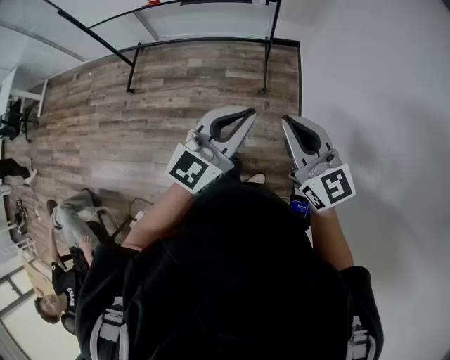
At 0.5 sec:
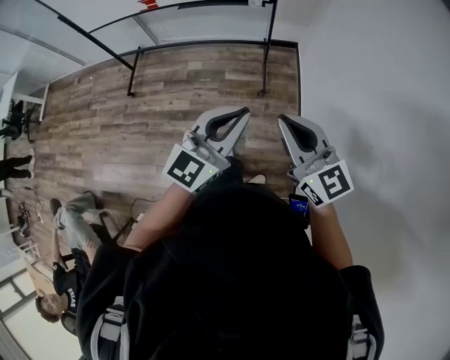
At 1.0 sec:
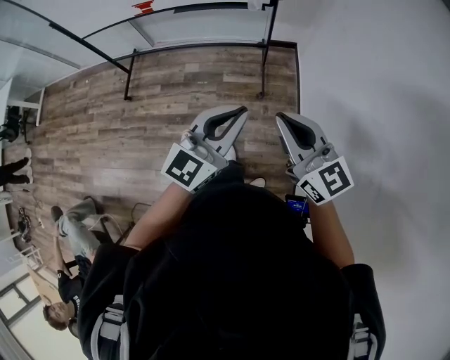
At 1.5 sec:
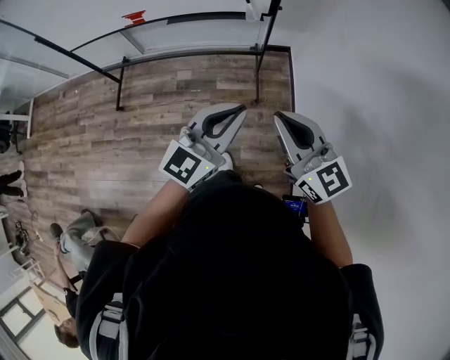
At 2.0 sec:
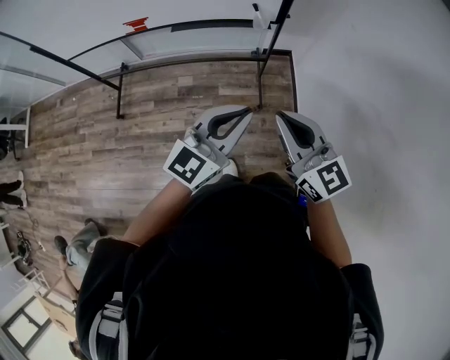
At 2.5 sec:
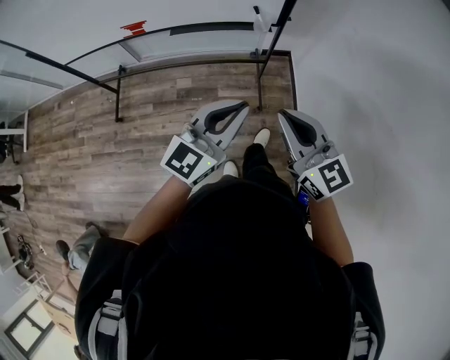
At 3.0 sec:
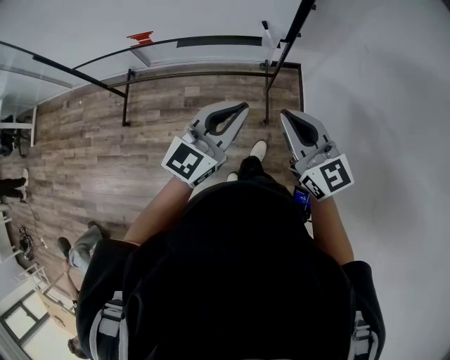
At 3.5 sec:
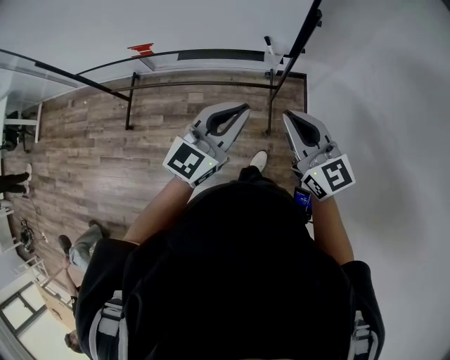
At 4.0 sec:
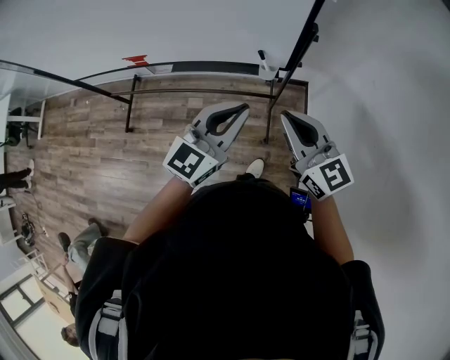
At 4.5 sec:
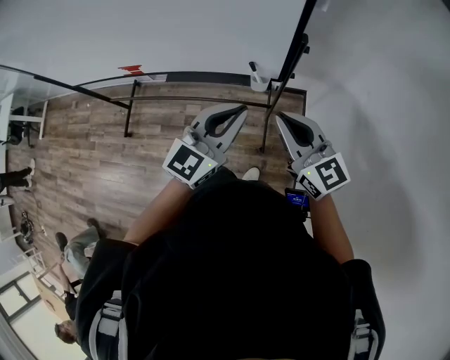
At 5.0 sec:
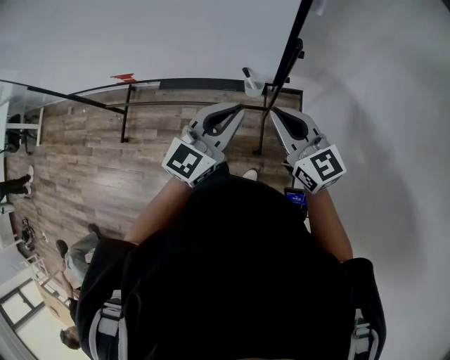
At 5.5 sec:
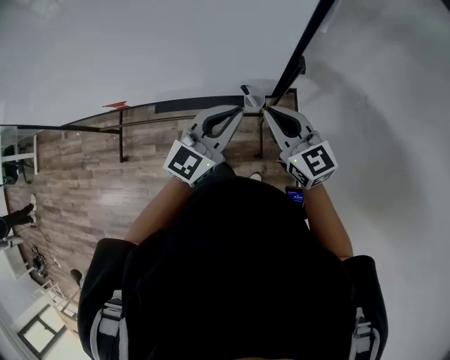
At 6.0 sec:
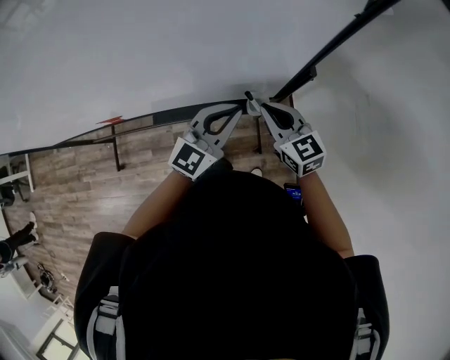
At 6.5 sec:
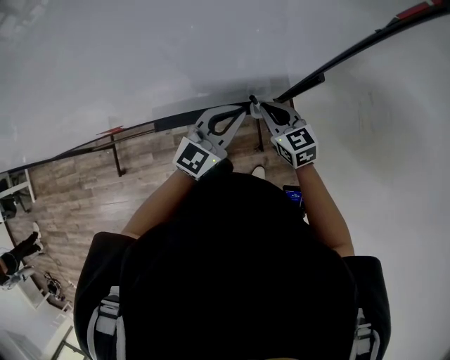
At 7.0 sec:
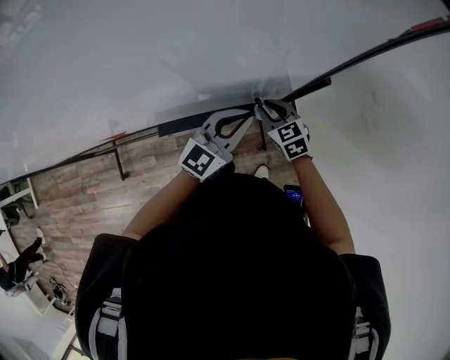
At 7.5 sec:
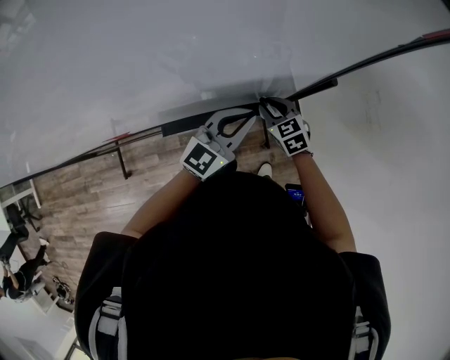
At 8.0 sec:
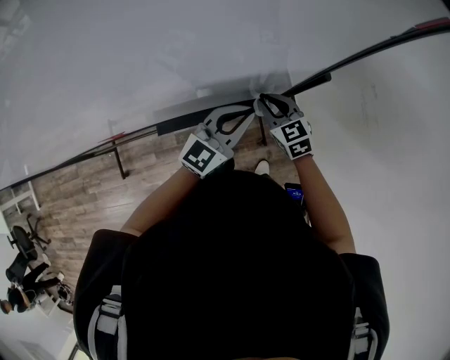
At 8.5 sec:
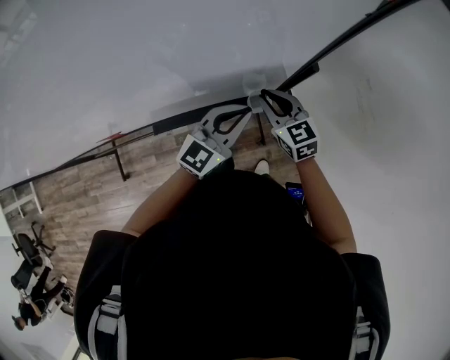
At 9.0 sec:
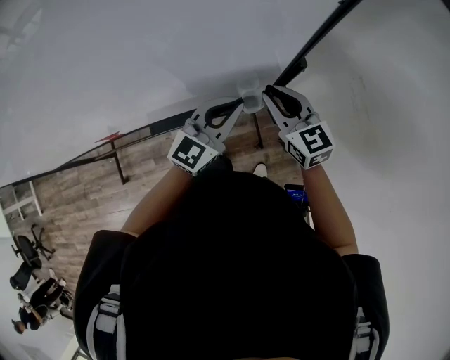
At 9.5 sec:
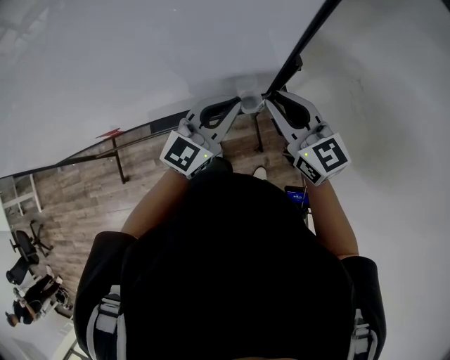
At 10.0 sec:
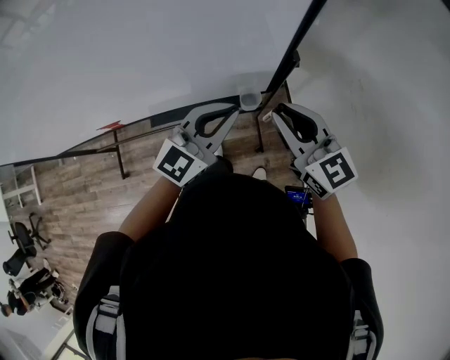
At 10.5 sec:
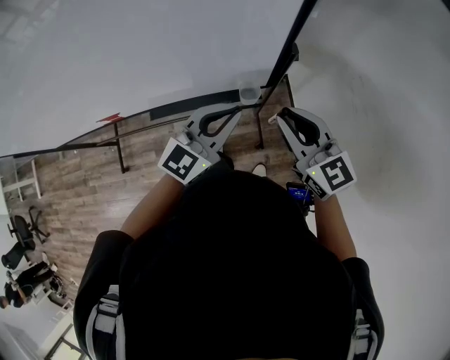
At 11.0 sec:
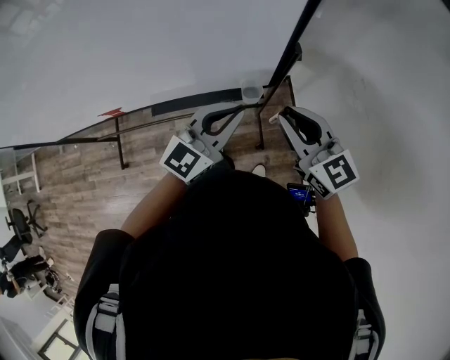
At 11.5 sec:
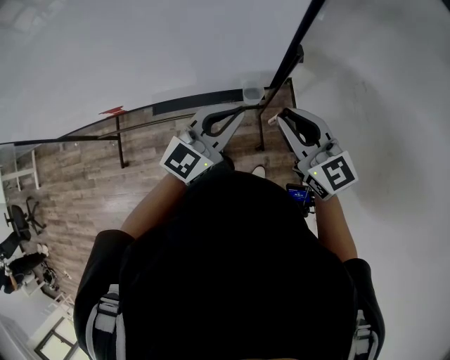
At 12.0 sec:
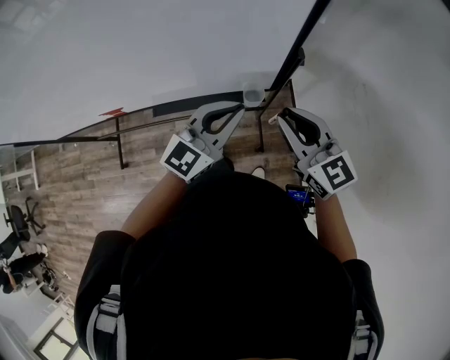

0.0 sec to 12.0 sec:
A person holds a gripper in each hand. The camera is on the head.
0.0 sec to 2.0 sec: The two grippers go some 25 cm forward and to the left.
2.0 sec to 4.0 sec: The grippers both shift forward by roughly 30 cm.
4.0 sec to 6.0 sec: The right gripper is displaced forward and downward by approximately 25 cm. The left gripper moves forward, some 20 cm.
6.0 sec to 8.0 sec: The right gripper shifts about 10 cm downward.
8.0 sec to 10.0 sec: The right gripper heads upward and backward, covering about 20 cm, and swivels some 30 degrees; the left gripper moves upward and backward, roughly 10 cm.
10.0 sec to 12.0 sec: There are only small adjustments of the grippers.

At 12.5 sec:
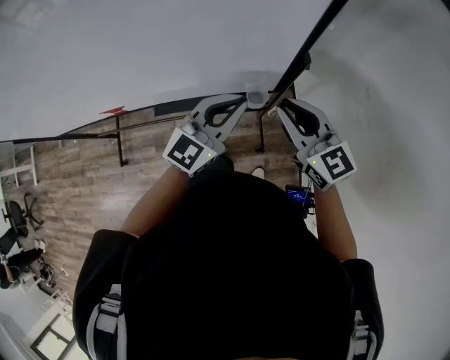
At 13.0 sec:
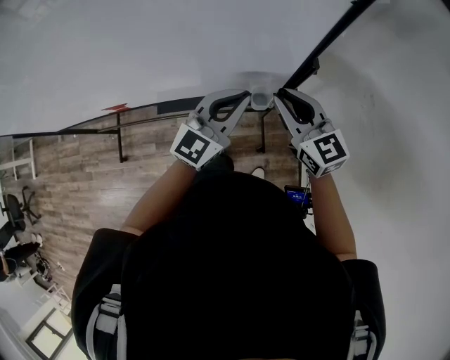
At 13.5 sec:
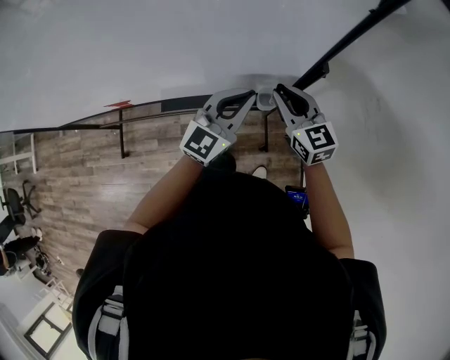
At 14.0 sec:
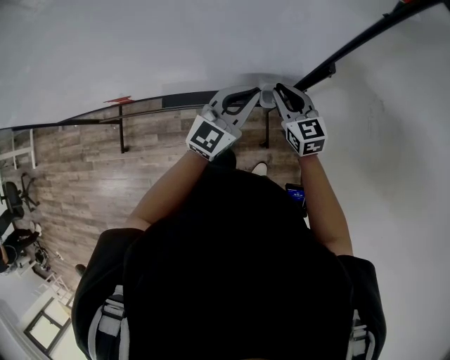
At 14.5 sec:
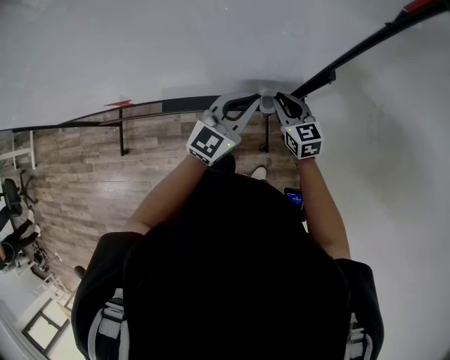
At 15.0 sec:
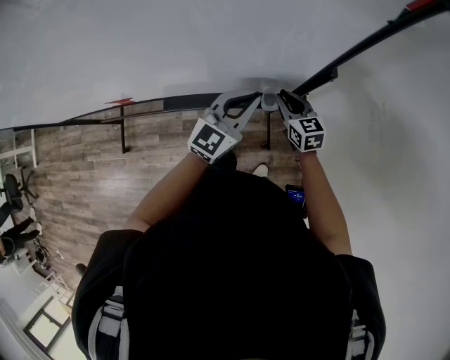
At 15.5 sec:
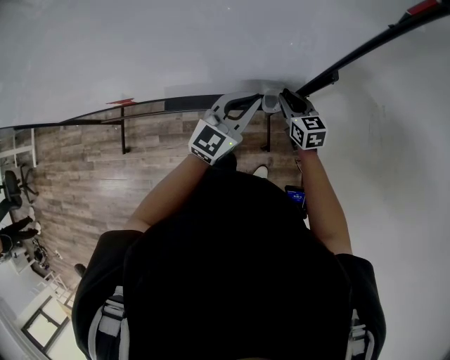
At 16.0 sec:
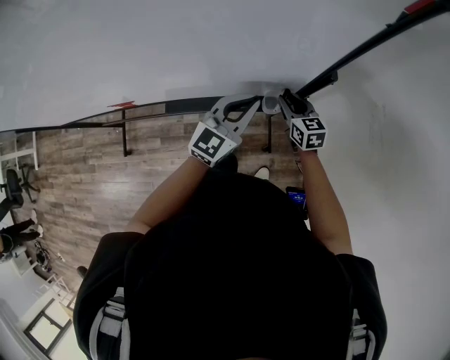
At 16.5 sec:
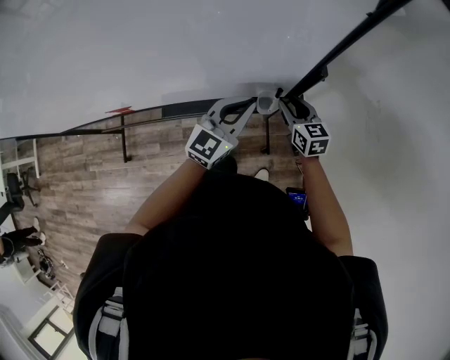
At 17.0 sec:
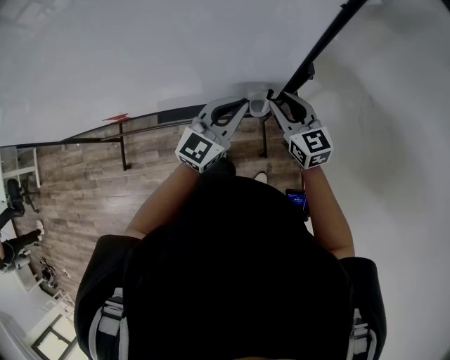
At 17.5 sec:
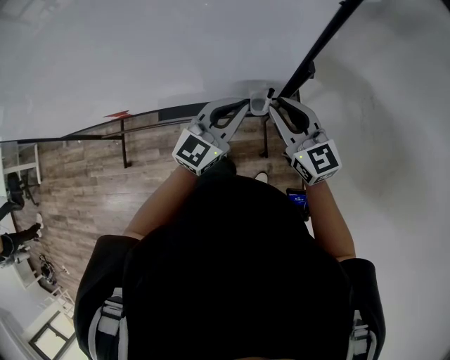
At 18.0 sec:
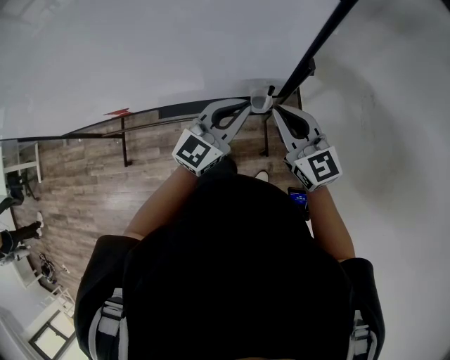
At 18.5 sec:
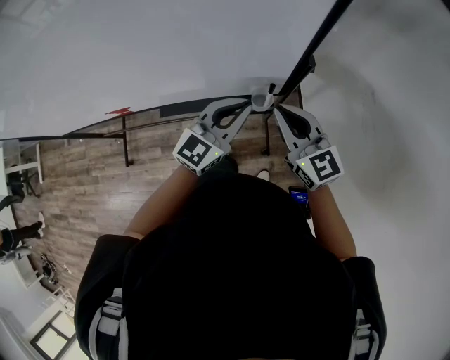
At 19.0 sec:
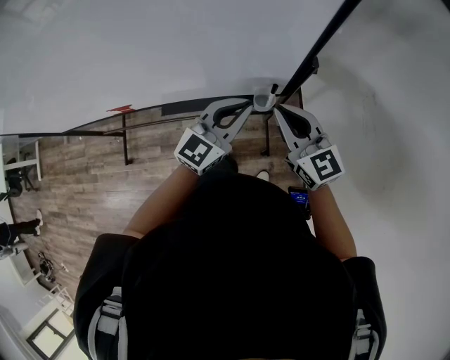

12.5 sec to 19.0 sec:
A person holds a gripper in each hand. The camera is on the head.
12.5 sec to 14.5 sec: The right gripper goes approximately 20 cm downward and forward. Meanwhile the left gripper goes approximately 5 cm downward.
14.5 sec to 17.0 sec: The right gripper shifts approximately 10 cm upward.
17.0 sec to 19.0 sec: The right gripper moves upward and backward, roughly 10 cm, and closes up.

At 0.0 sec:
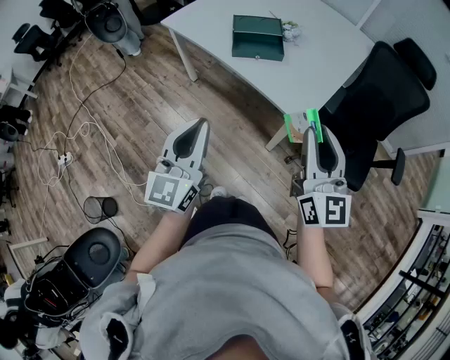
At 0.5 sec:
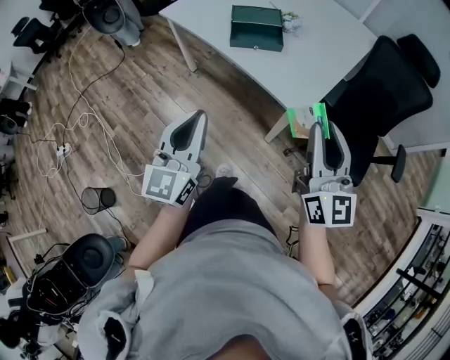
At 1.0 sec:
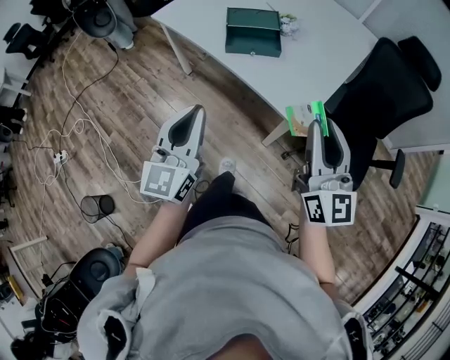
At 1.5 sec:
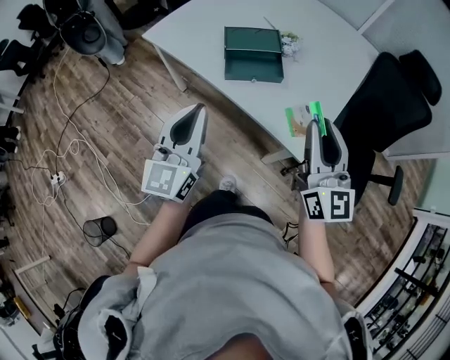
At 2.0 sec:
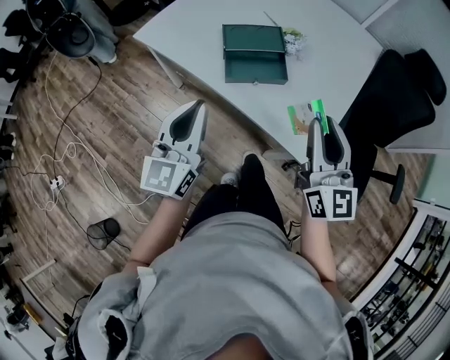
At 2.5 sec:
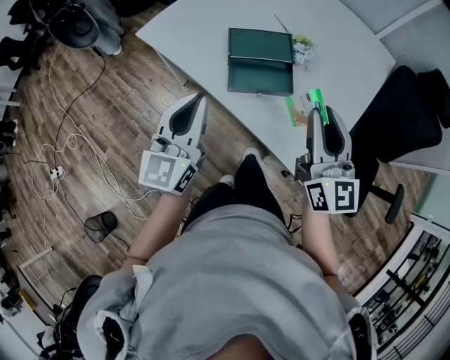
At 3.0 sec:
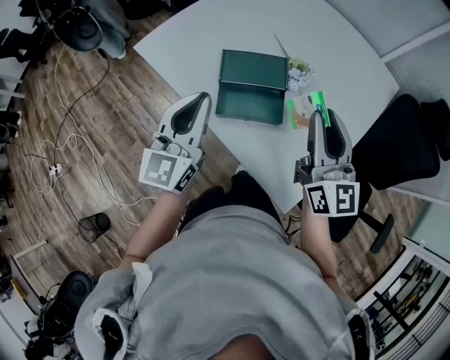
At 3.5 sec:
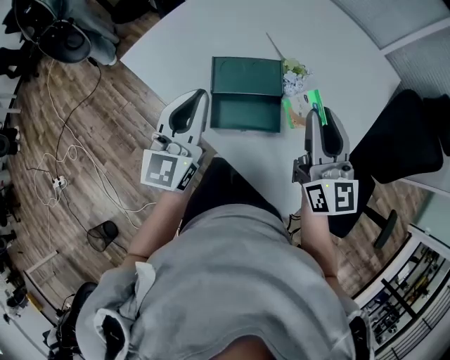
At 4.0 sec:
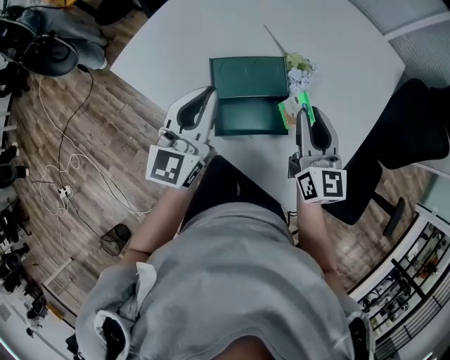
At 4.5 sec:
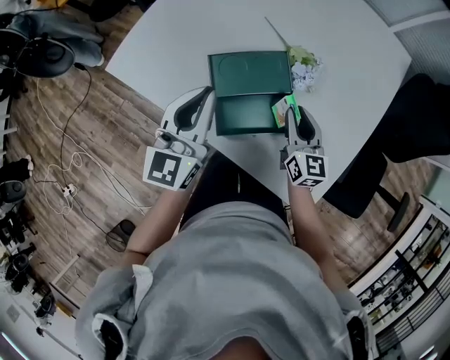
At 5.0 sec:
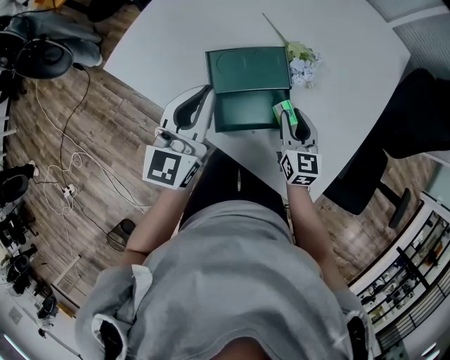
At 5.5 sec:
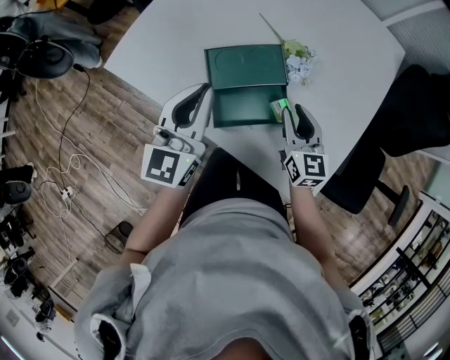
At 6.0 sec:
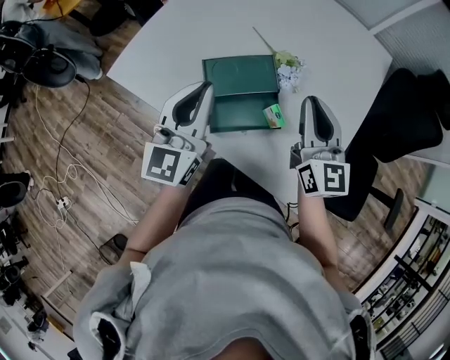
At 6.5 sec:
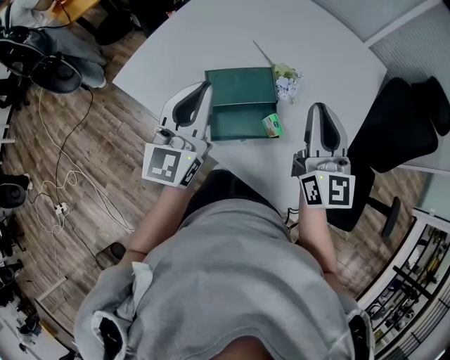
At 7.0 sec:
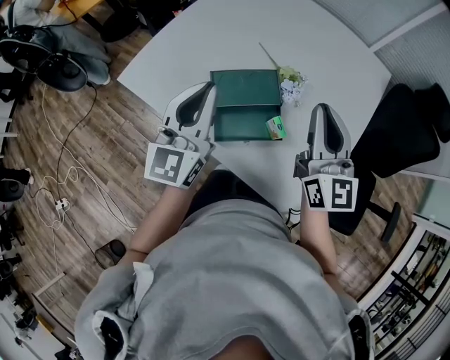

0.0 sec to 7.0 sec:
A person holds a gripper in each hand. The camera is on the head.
0.0 sec to 2.0 sec: Both grippers travel together forward, roughly 30 cm.
2.0 sec to 3.5 sec: Both grippers move forward, approximately 30 cm.
3.5 sec to 5.0 sec: The right gripper moves downward, roughly 25 cm, and rotates roughly 30 degrees; the left gripper travels forward and downward by approximately 10 cm.
5.0 sec to 7.0 sec: The right gripper heads upward, covering some 30 cm, and changes its angle by some 30 degrees, while the left gripper goes about 10 cm upward.

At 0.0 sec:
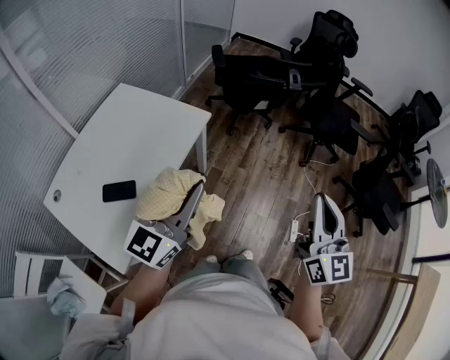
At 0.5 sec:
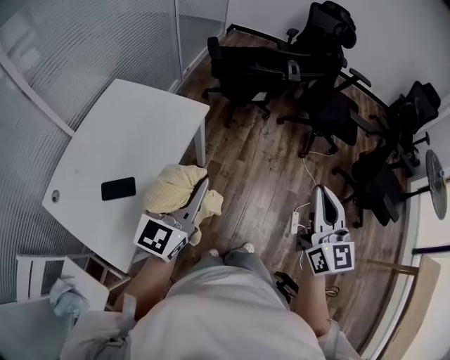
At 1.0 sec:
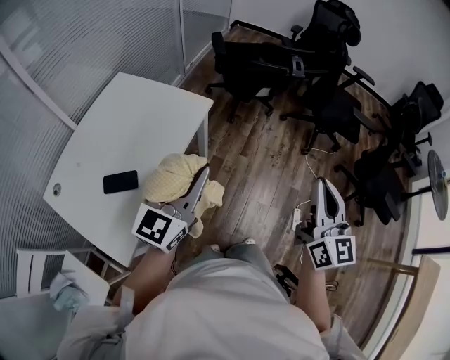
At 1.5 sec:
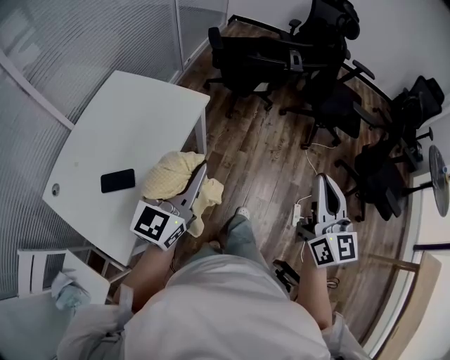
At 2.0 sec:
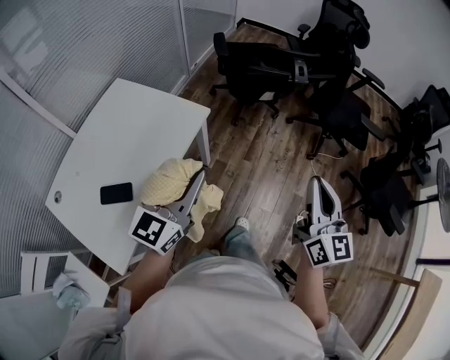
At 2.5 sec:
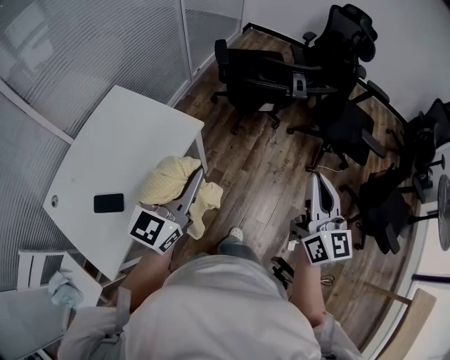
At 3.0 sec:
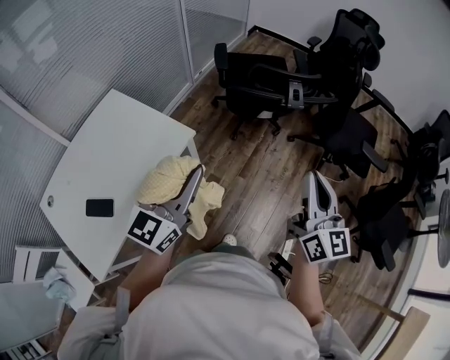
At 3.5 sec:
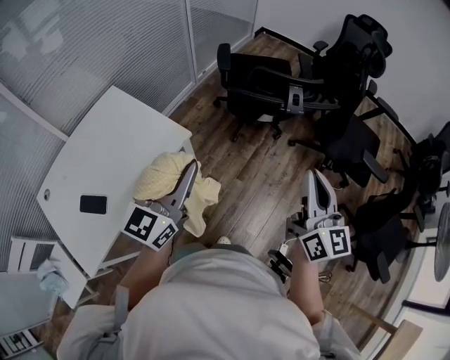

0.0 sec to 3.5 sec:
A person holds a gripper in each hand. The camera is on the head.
0.0 sec to 2.0 sec: The two grippers go some 10 cm forward.
2.0 sec to 3.5 sec: The two grippers go some 20 cm forward and to the right.
